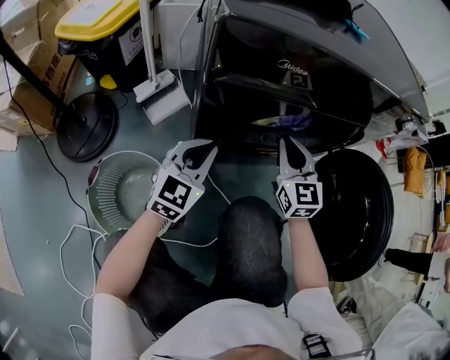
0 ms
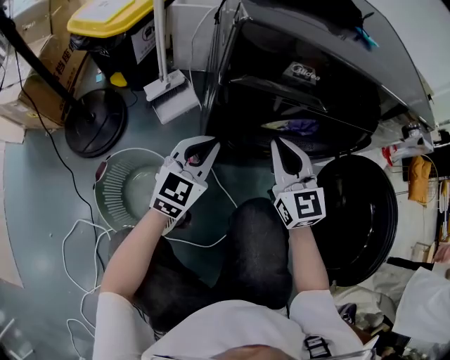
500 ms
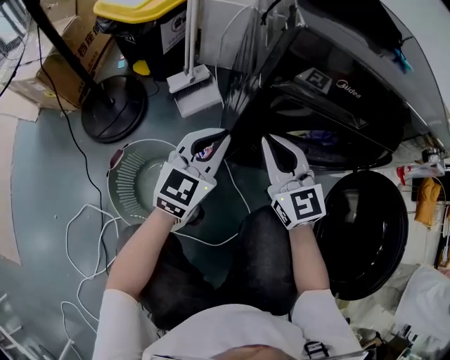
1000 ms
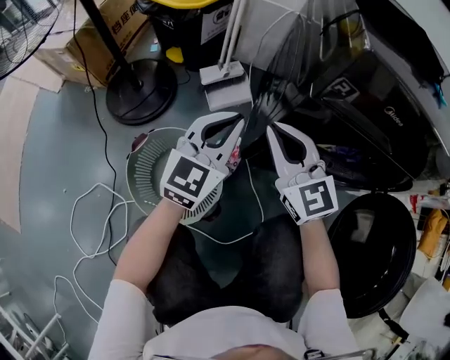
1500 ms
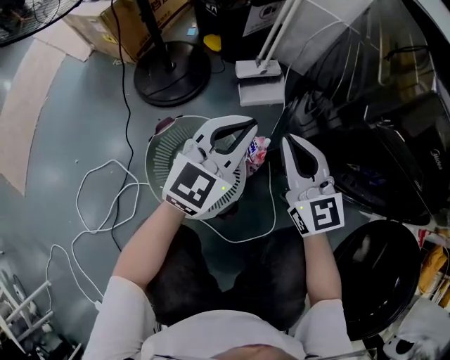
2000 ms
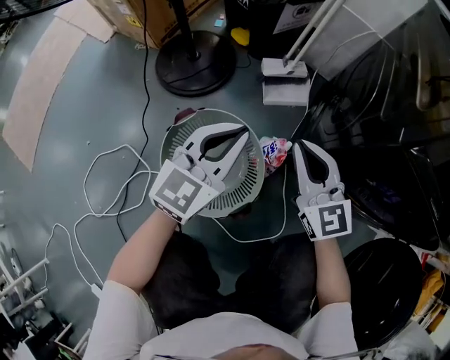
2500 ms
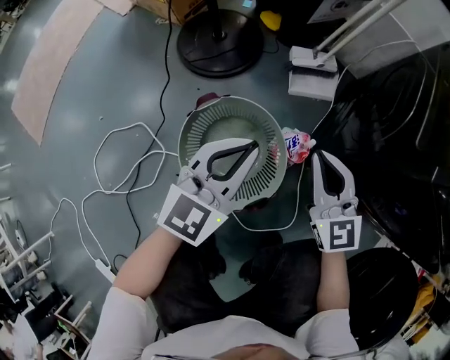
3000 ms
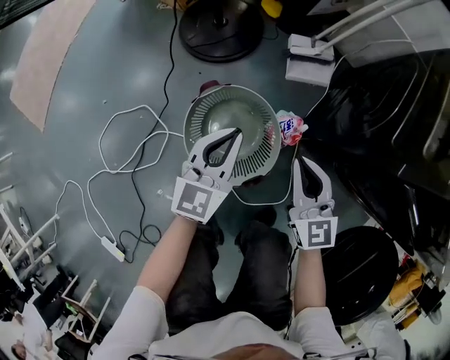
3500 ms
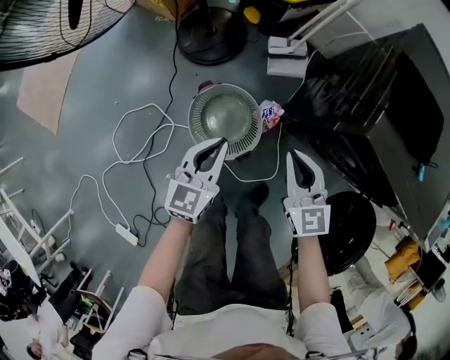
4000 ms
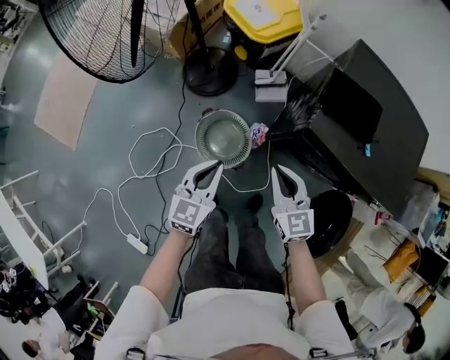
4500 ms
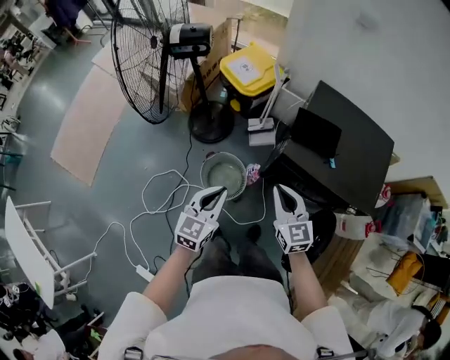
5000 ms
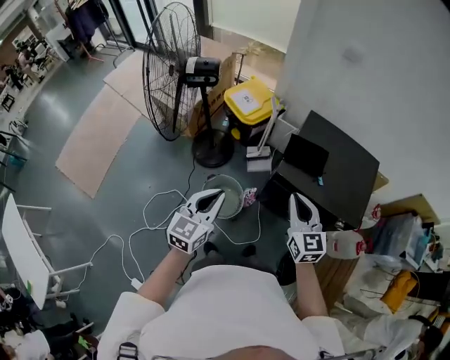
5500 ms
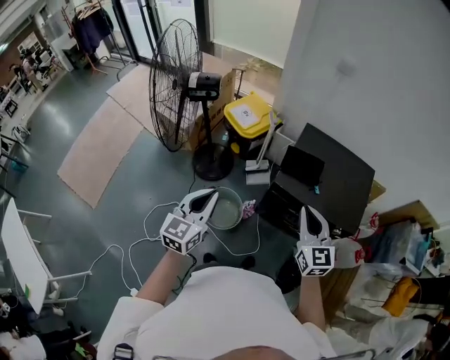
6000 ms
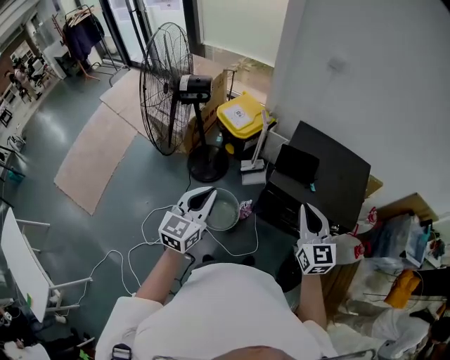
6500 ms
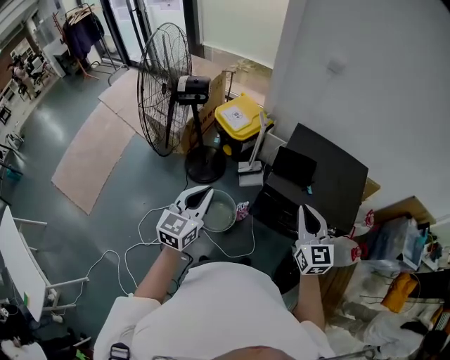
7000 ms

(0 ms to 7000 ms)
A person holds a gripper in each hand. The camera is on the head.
0 ms - 2000 ms: The left gripper changes place by about 20 cm, and rotates some 20 degrees. The right gripper ends up about 30 cm from where it was, and changes its angle by some 40 degrees.
2000 ms - 3500 ms: The left gripper moves to the left, about 15 cm, and swivels approximately 30 degrees. The right gripper heads to the left, covering about 5 cm.
3500 ms - 5000 ms: The grippers both shift upward by roughly 50 cm.
5000 ms - 7000 ms: The left gripper moves upward, some 15 cm; the right gripper travels upward and to the right by some 20 cm.

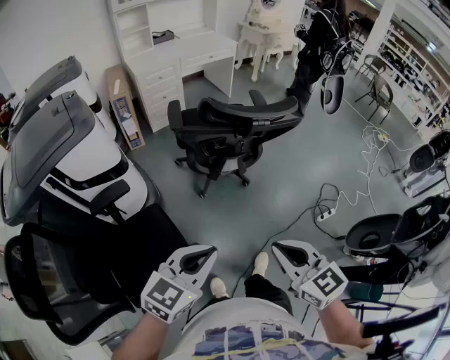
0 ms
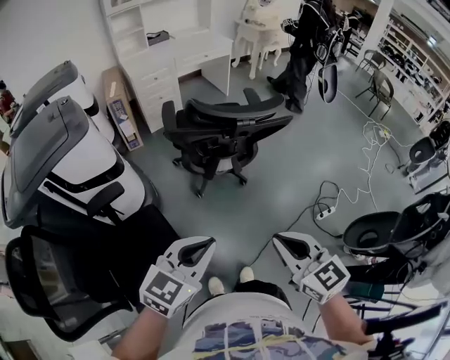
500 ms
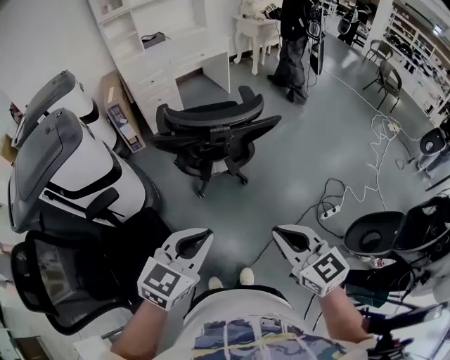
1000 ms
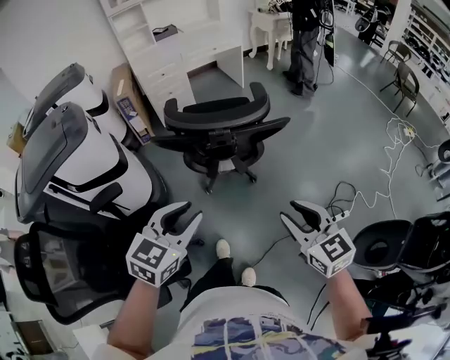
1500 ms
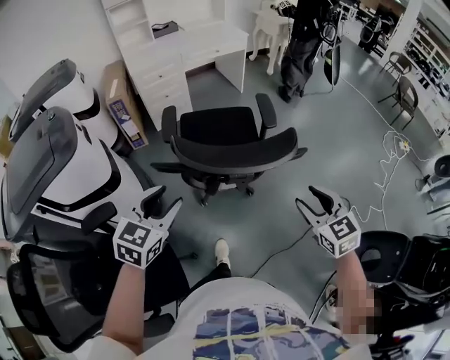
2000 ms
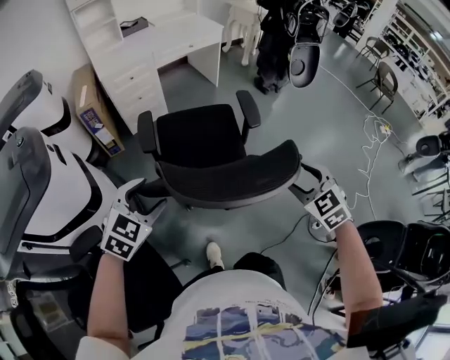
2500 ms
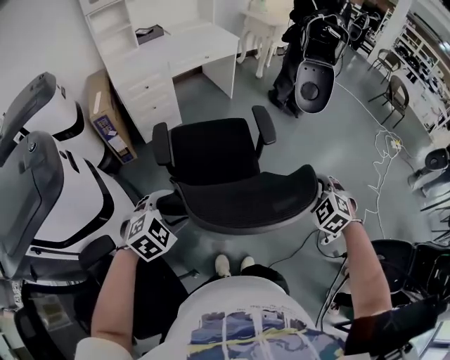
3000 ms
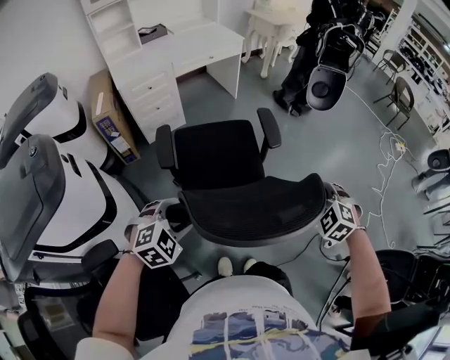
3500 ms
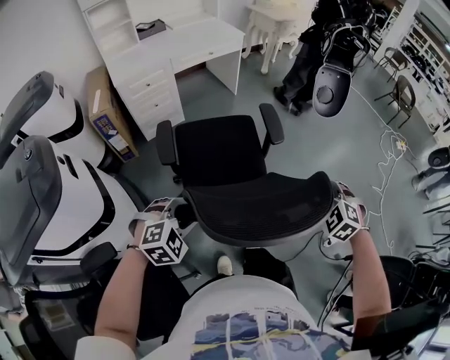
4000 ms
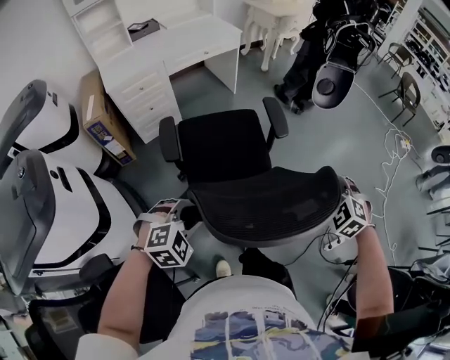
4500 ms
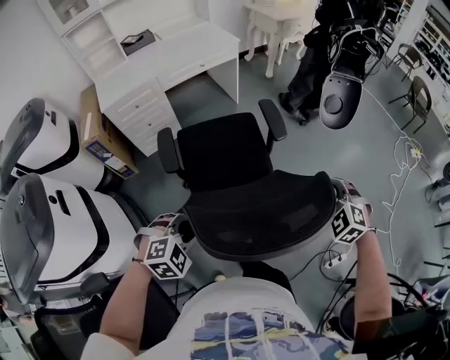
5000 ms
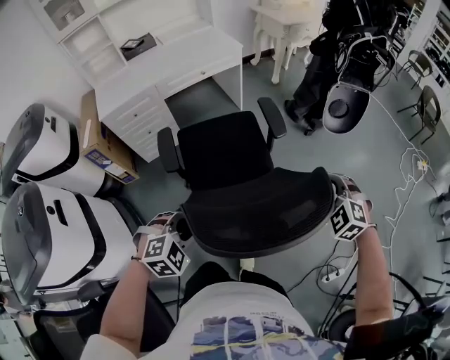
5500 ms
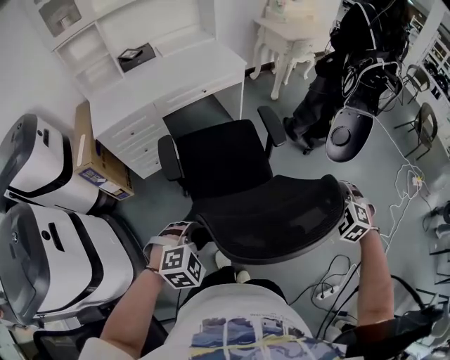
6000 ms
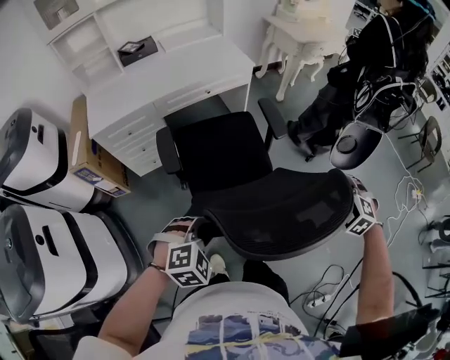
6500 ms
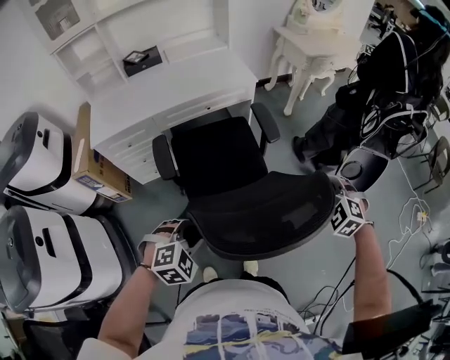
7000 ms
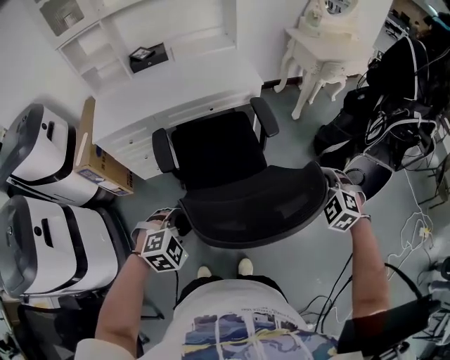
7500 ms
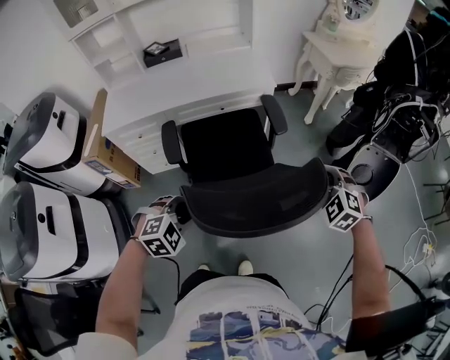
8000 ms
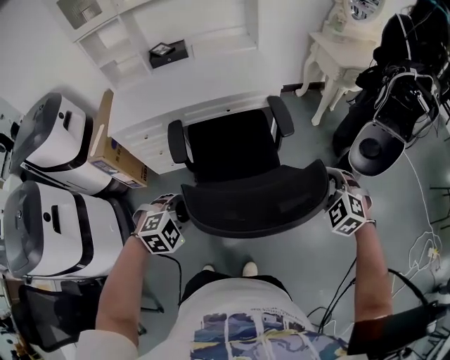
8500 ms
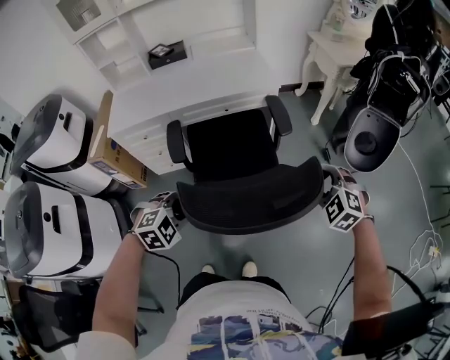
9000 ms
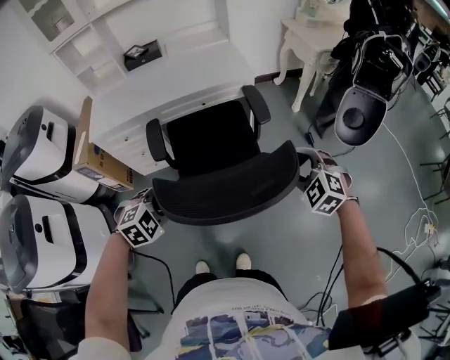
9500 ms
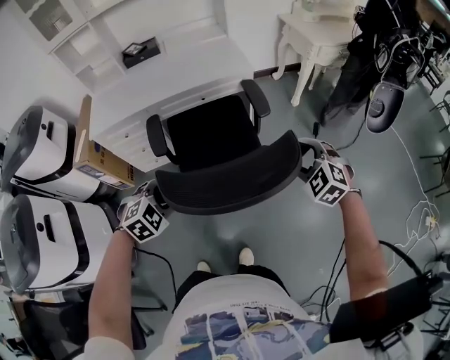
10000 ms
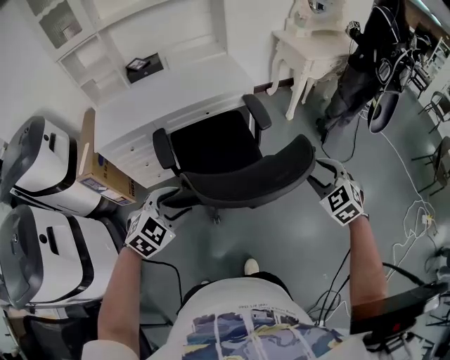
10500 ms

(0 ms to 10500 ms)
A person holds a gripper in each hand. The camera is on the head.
0 ms - 2000 ms: The right gripper shifts about 35 cm forward and to the right, and opens up; the left gripper heads forward, covering about 30 cm, swivels approximately 20 degrees, and opens.
2000 ms - 4000 ms: Both grippers travel together forward and downward, roughly 15 cm. The right gripper rotates about 40 degrees, while the left gripper twists about 40 degrees clockwise, seen from behind, and opens and closes again.
4000 ms - 6500 ms: Both grippers are carried forward, approximately 40 cm.
6500 ms - 8500 ms: Both grippers travel together forward, some 20 cm.
8500 ms - 10500 ms: The left gripper is displaced upward by about 5 cm, and opens up, while the right gripper moves backward, roughly 5 cm, and changes its angle by approximately 20 degrees.

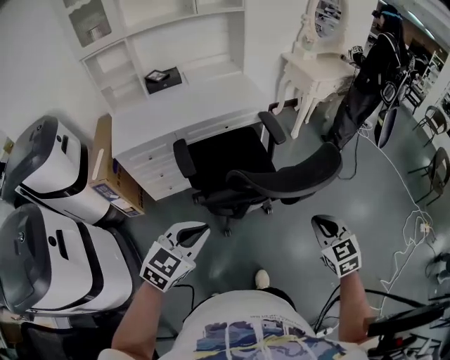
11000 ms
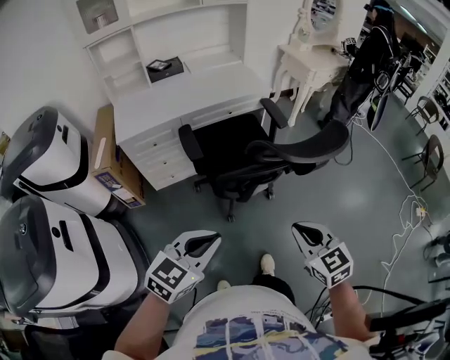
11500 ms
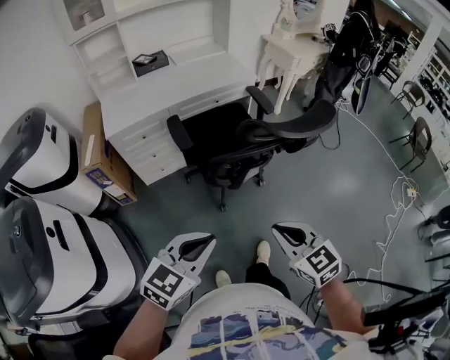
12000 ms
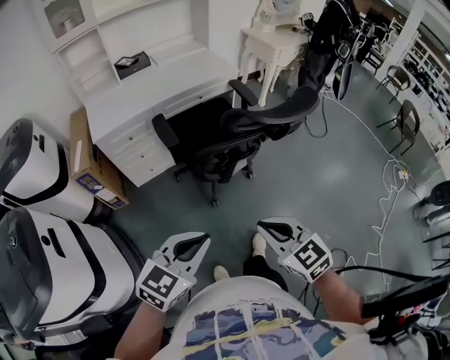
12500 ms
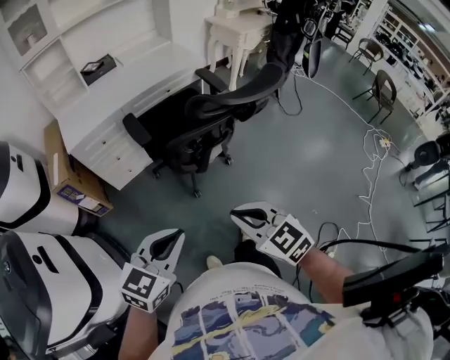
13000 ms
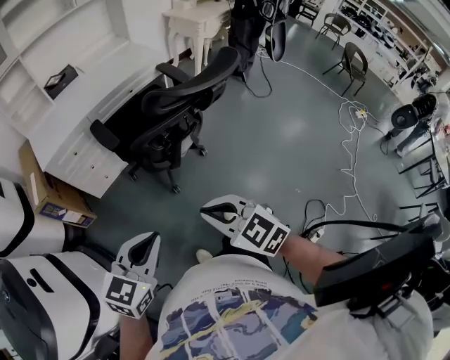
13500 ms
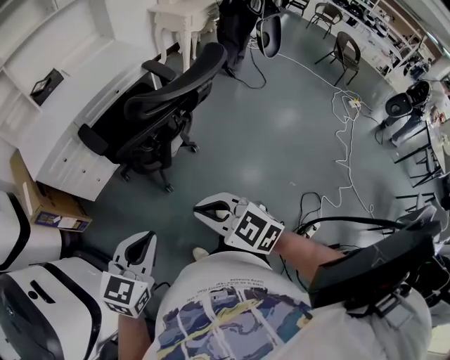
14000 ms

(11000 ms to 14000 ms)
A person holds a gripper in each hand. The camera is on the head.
11000 ms - 12500 ms: The right gripper heads backward and to the left, covering about 30 cm; the left gripper goes approximately 15 cm backward.
12500 ms - 14000 ms: The grippers make only small movements.

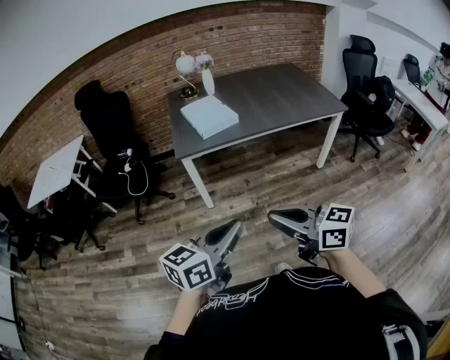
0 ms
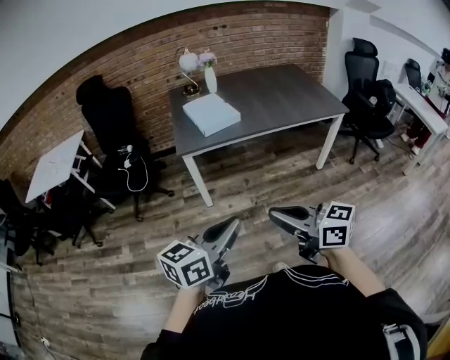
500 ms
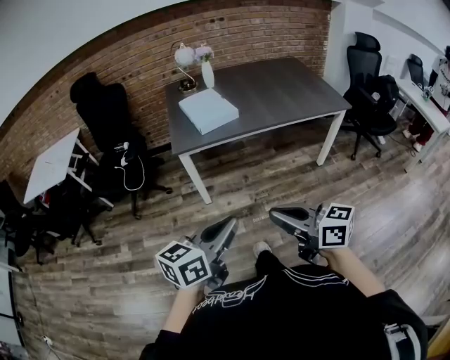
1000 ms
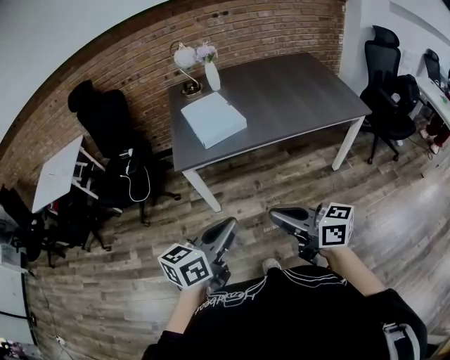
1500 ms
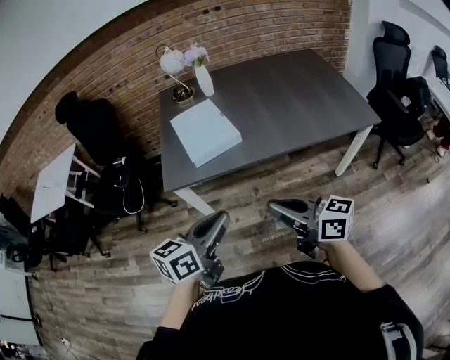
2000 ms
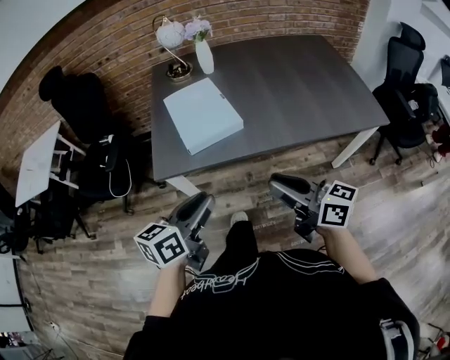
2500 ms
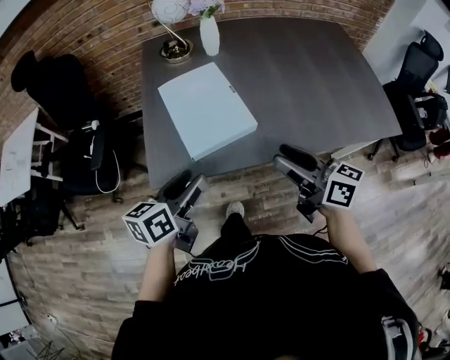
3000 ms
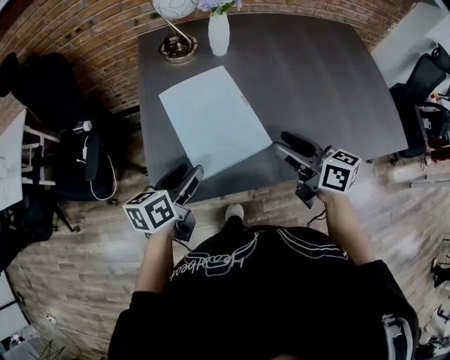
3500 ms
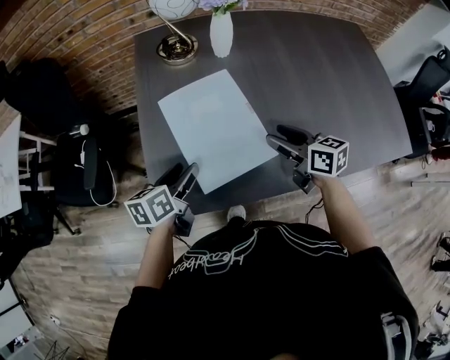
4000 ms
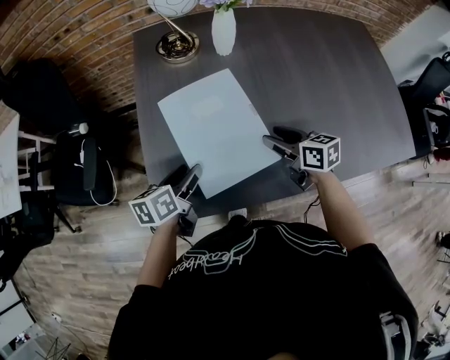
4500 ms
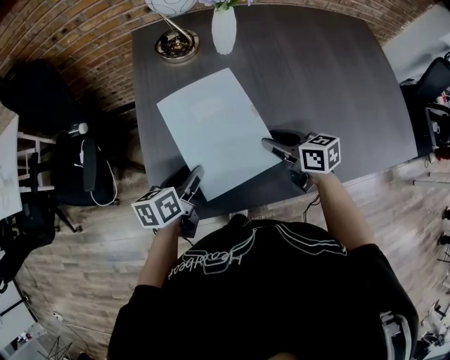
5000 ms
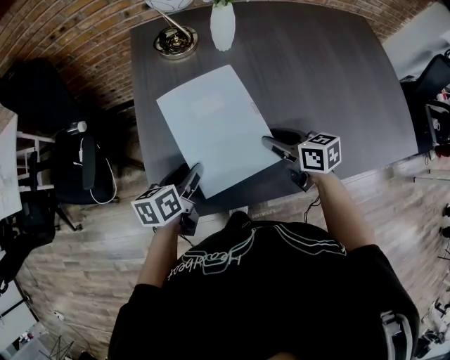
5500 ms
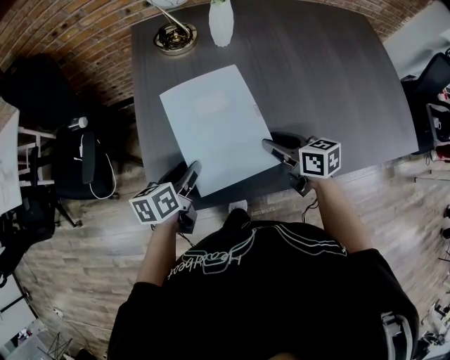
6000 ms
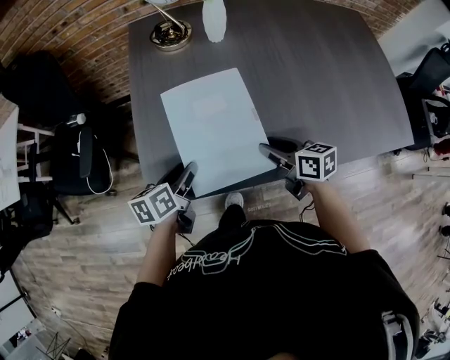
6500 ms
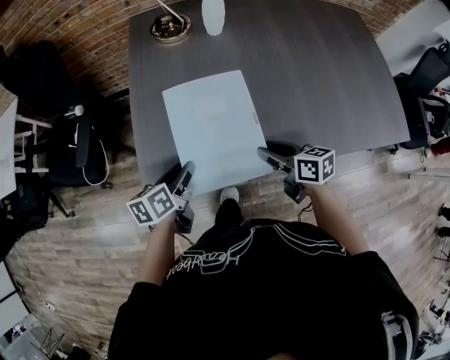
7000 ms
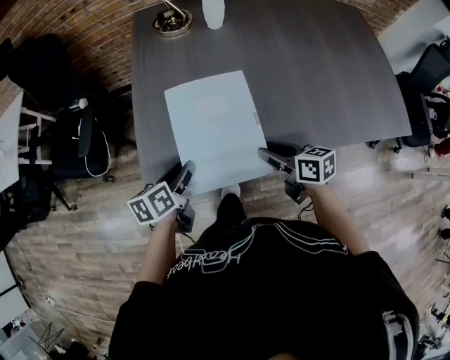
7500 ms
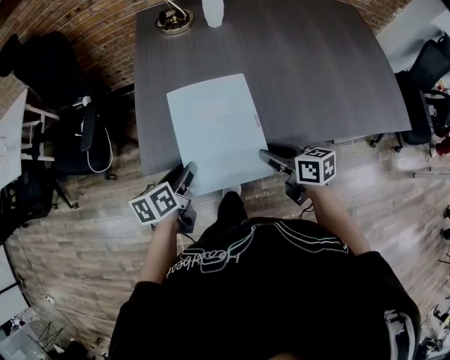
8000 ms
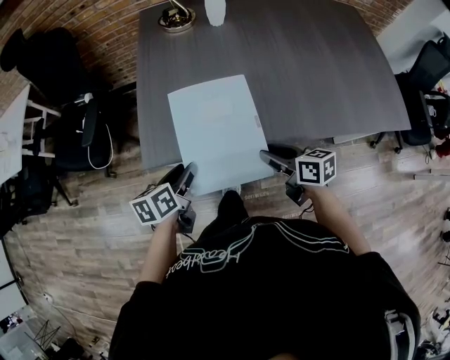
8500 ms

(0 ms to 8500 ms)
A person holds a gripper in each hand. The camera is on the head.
0 ms - 2000 ms: The grippers both shift forward by roughly 35 cm.
2000 ms - 4000 ms: The two grippers travel together, forward, roughly 50 cm. The right gripper turns by approximately 30 degrees, and opens its fingers. The left gripper shifts roughly 20 cm downward, changes its angle by some 30 degrees, and opens up.
4000 ms - 6500 ms: The left gripper changes place by some 5 cm. The right gripper heads backward and downward, covering approximately 10 cm.
6500 ms - 8500 ms: The grippers both shift backward by about 15 cm.
